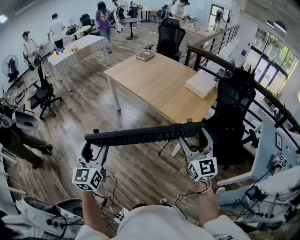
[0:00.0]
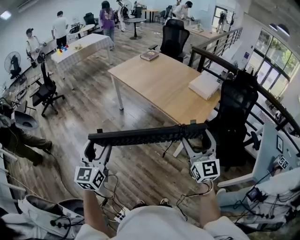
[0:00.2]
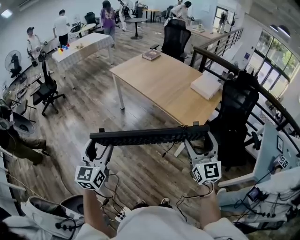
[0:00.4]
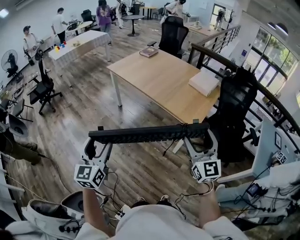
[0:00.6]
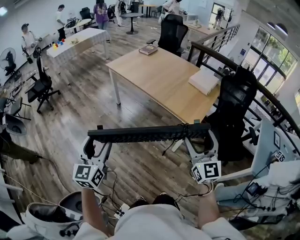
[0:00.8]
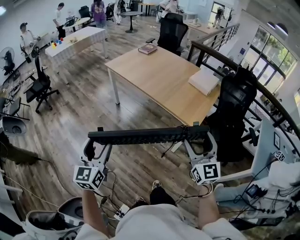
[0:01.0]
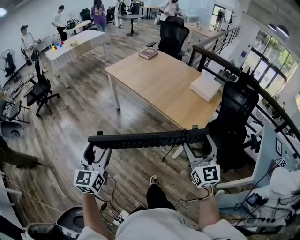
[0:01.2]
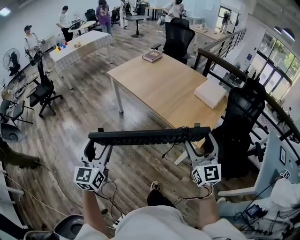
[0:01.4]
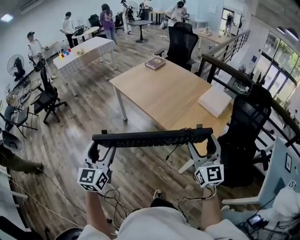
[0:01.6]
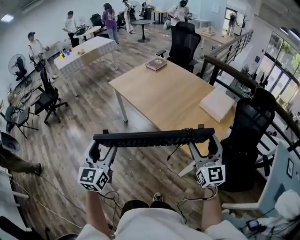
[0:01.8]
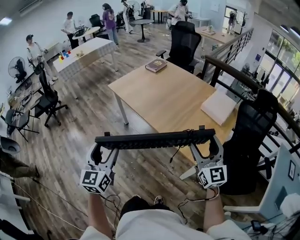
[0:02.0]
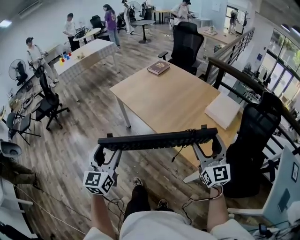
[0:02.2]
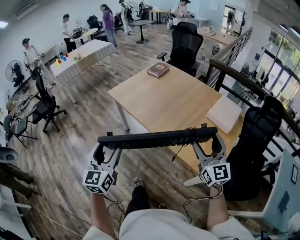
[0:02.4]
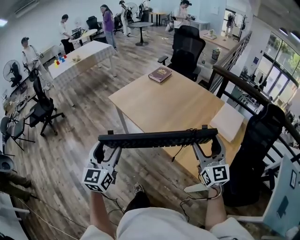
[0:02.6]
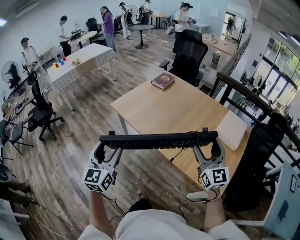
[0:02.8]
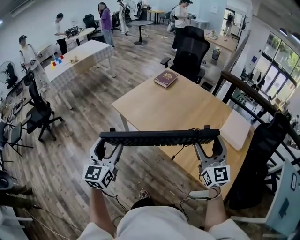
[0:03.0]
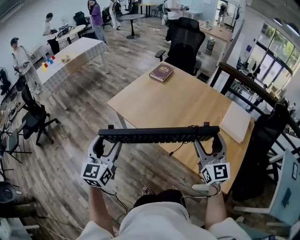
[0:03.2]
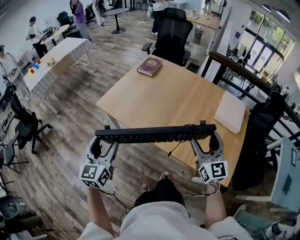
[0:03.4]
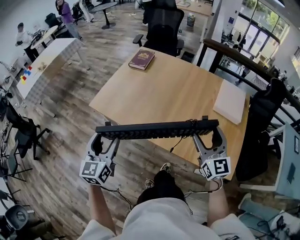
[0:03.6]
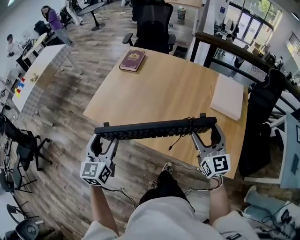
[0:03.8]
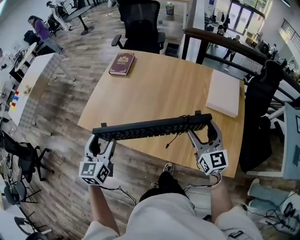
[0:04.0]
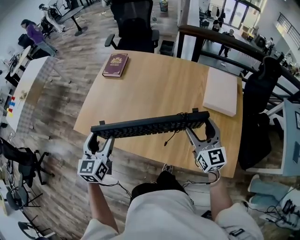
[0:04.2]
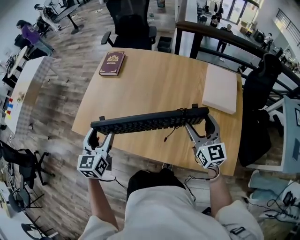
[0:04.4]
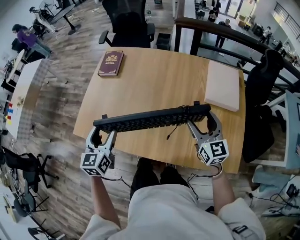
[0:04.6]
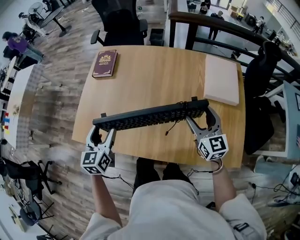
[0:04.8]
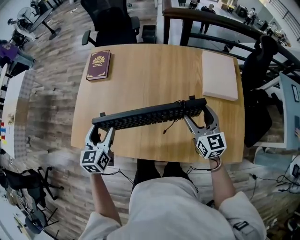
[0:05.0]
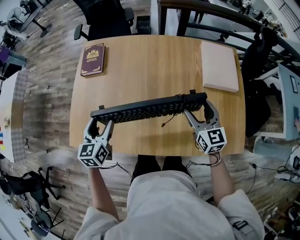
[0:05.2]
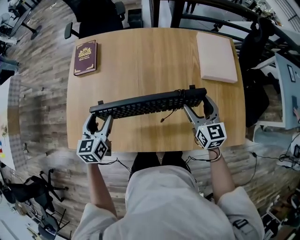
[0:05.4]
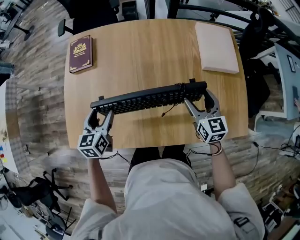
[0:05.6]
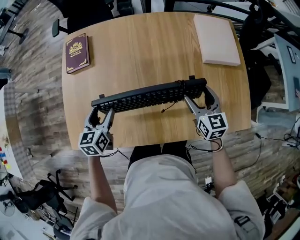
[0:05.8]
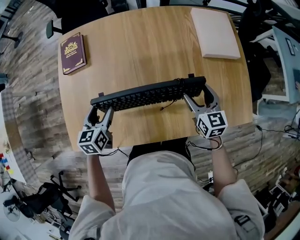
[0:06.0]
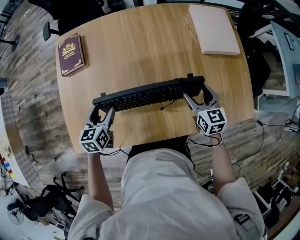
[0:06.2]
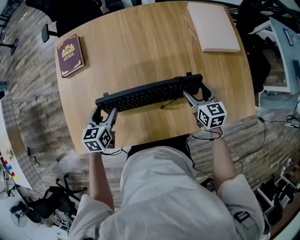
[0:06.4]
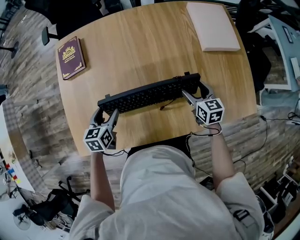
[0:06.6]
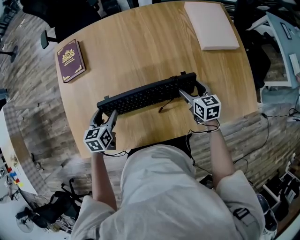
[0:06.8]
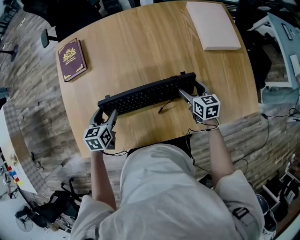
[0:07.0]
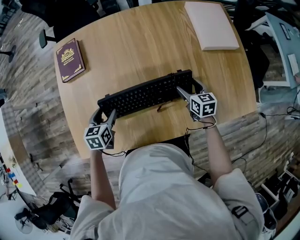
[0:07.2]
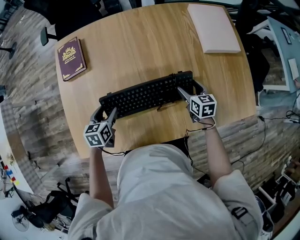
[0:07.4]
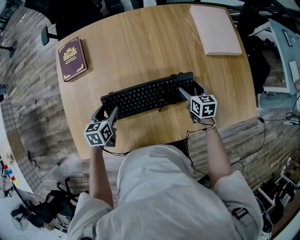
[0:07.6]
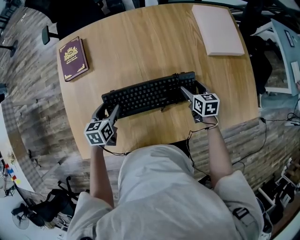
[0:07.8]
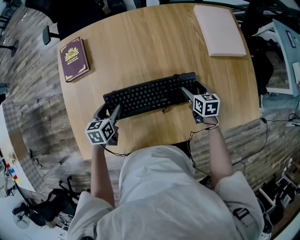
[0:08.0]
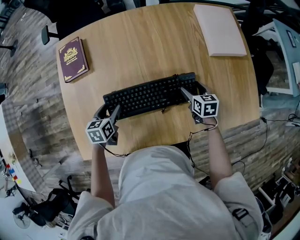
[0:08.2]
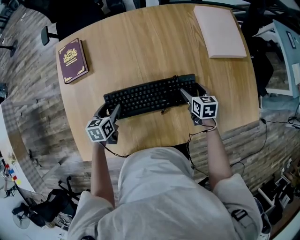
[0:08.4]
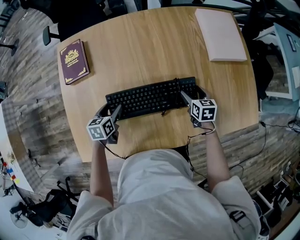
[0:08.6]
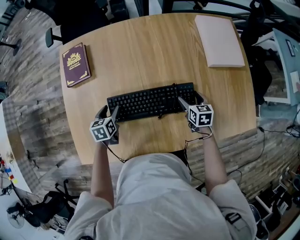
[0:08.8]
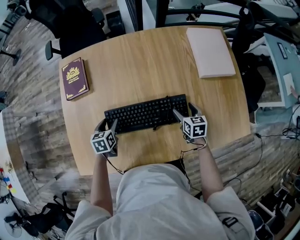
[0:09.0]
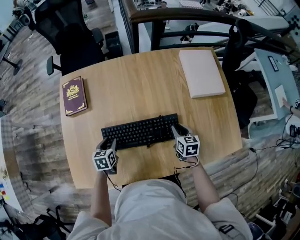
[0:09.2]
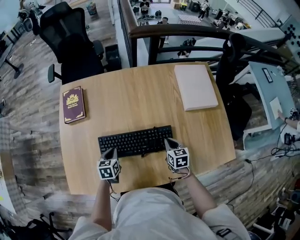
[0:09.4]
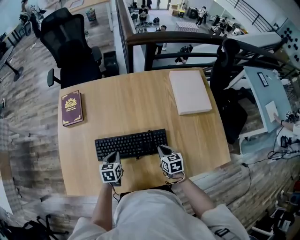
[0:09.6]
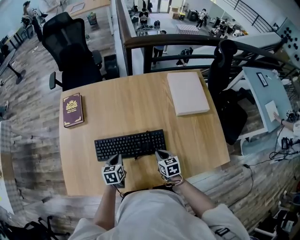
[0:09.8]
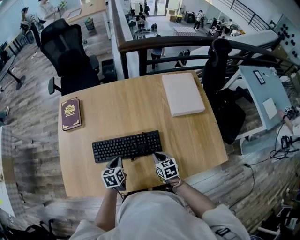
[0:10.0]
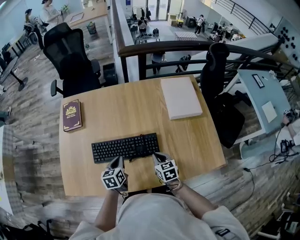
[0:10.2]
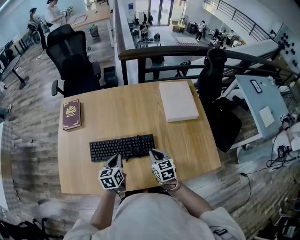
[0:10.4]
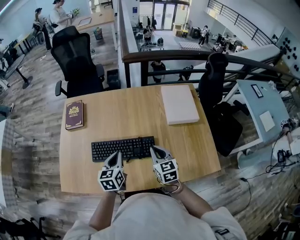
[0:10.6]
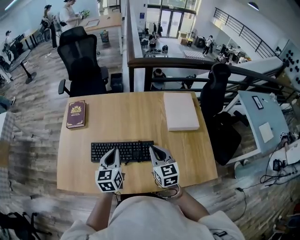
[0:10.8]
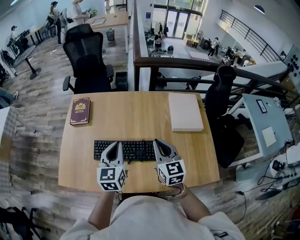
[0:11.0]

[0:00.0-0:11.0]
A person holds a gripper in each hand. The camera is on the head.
0:00.0 to 0:01.6: The two grippers go roughly 15 cm forward.
0:01.6 to 0:03.2: Both grippers travel together forward, approximately 40 cm.
0:03.2 to 0:04.8: The left gripper travels forward by roughly 35 cm, and turns by roughly 30 degrees. The right gripper is displaced forward, downward and to the right by some 25 cm, and changes its angle by about 30 degrees.
0:04.8 to 0:06.2: The left gripper goes some 20 cm downward and forward, and changes its angle by approximately 30 degrees; the right gripper is displaced downward by about 15 cm, and swivels about 30 degrees.
0:06.2 to 0:07.8: The left gripper shifts about 5 cm downward, while the right gripper is displaced downward by some 10 cm, and rotates approximately 20 degrees.
0:07.8 to 0:09.4: The left gripper shifts some 5 cm to the right, and closes its fingers. The right gripper closes up.
0:09.4 to 0:11.0: The right gripper heads upward, covering some 25 cm, and tilts its fingers about 30 degrees upward; the left gripper travels upward and to the right by some 30 cm, and points its fingers some 40 degrees further upward.

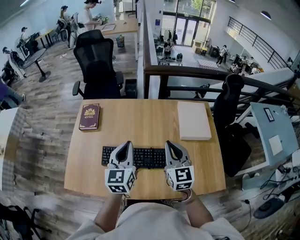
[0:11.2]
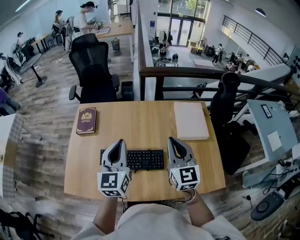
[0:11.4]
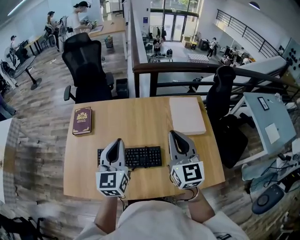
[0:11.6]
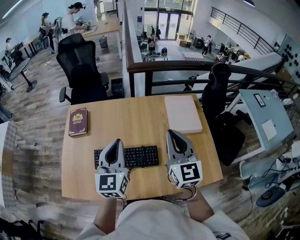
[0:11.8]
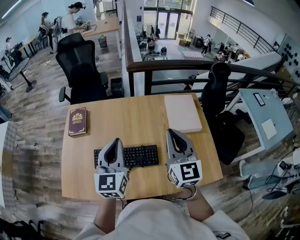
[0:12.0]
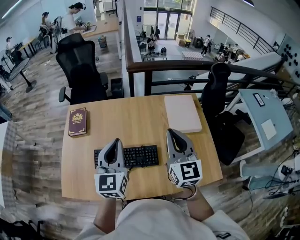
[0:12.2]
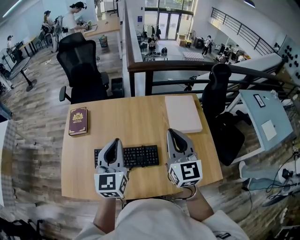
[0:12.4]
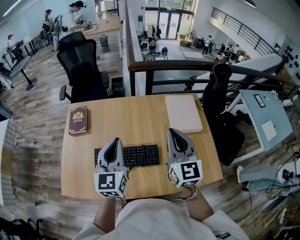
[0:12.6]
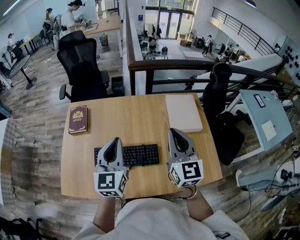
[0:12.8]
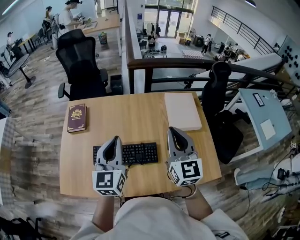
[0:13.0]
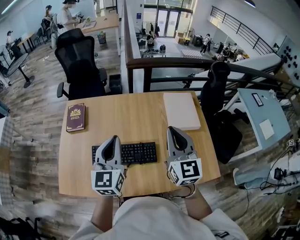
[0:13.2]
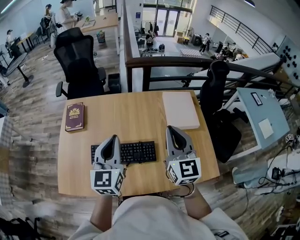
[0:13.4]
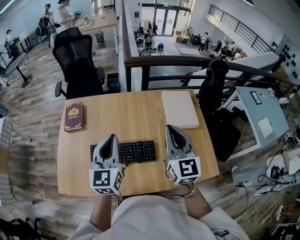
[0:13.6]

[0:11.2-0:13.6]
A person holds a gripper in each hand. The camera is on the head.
0:11.2 to 0:12.4: The right gripper travels upward by some 10 cm.
0:12.4 to 0:13.6: The two grippers keep their place.

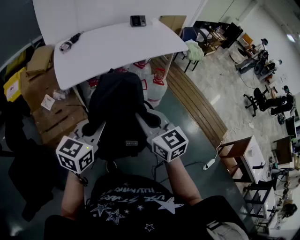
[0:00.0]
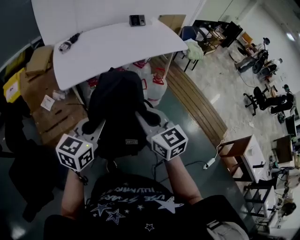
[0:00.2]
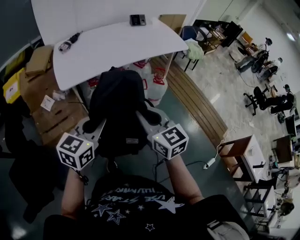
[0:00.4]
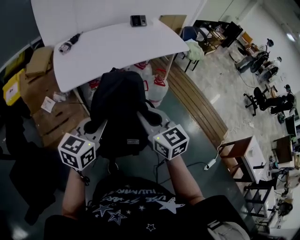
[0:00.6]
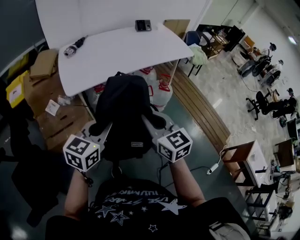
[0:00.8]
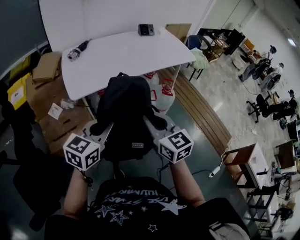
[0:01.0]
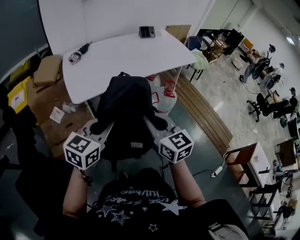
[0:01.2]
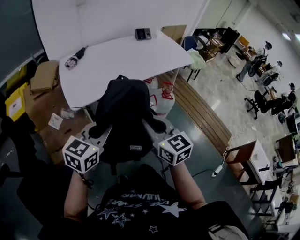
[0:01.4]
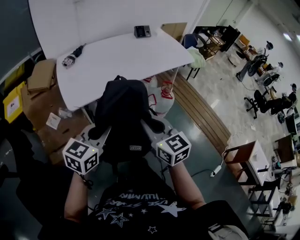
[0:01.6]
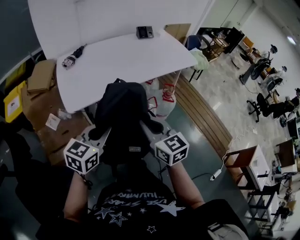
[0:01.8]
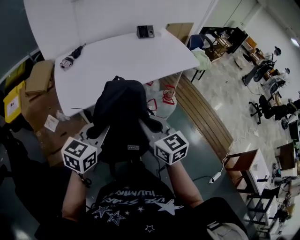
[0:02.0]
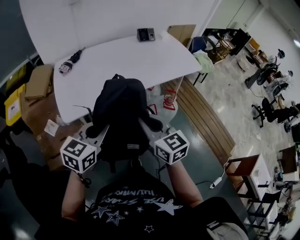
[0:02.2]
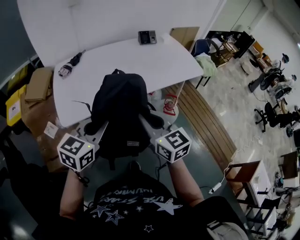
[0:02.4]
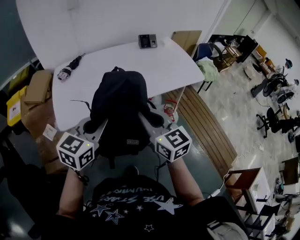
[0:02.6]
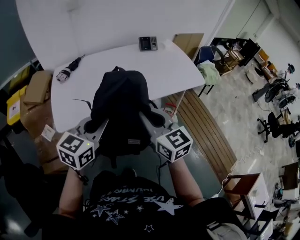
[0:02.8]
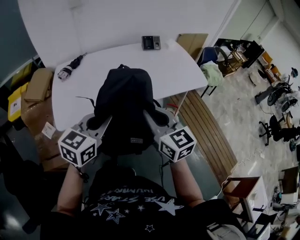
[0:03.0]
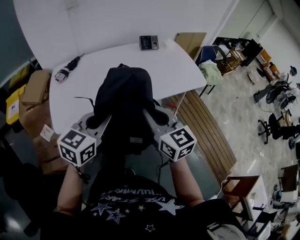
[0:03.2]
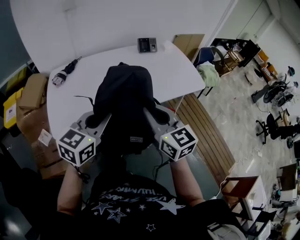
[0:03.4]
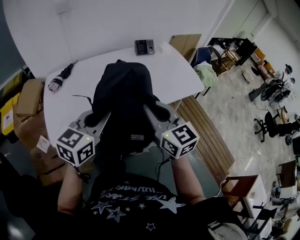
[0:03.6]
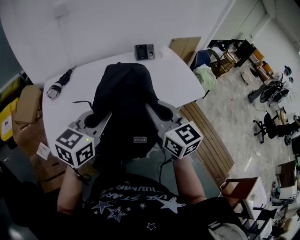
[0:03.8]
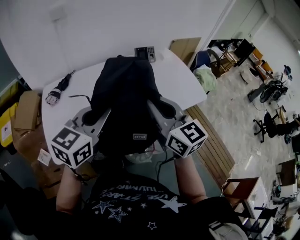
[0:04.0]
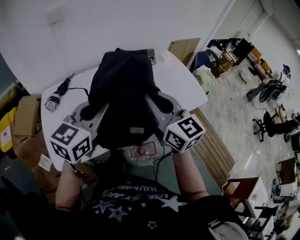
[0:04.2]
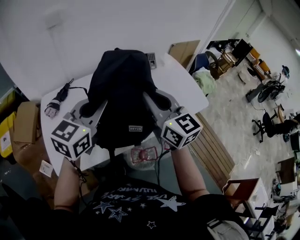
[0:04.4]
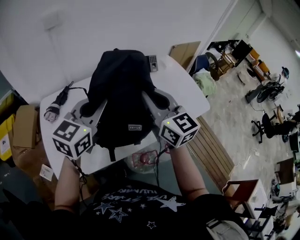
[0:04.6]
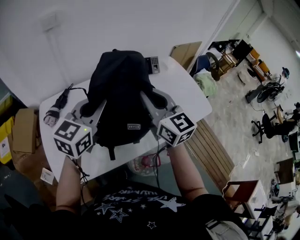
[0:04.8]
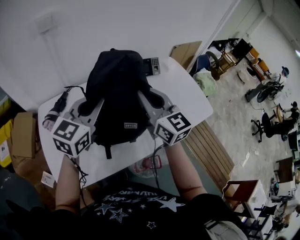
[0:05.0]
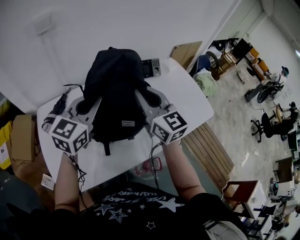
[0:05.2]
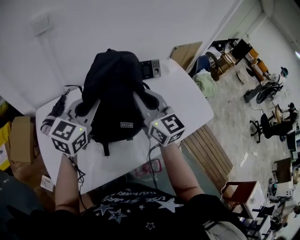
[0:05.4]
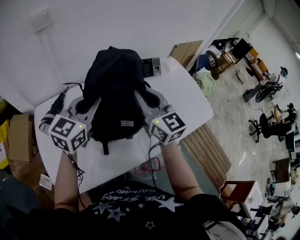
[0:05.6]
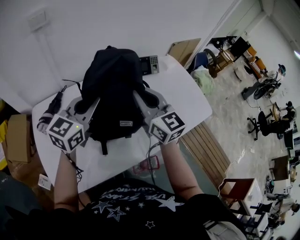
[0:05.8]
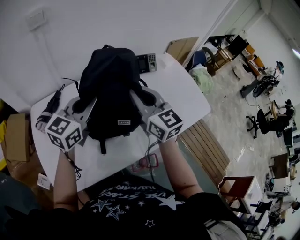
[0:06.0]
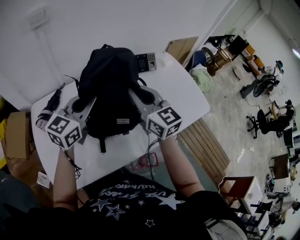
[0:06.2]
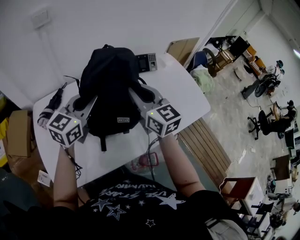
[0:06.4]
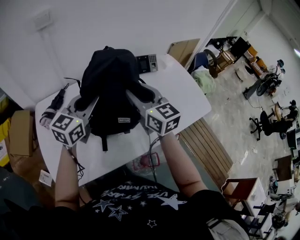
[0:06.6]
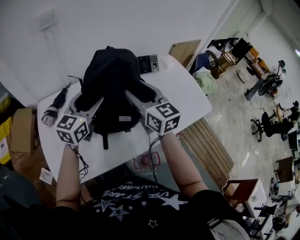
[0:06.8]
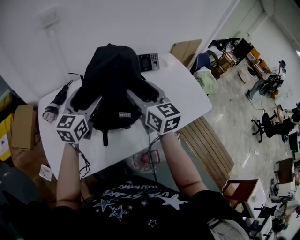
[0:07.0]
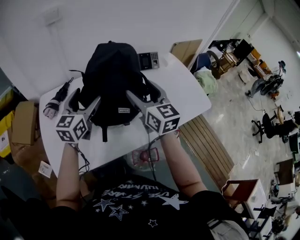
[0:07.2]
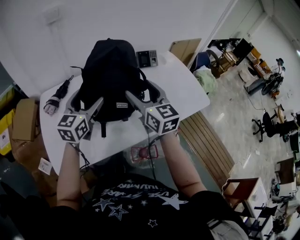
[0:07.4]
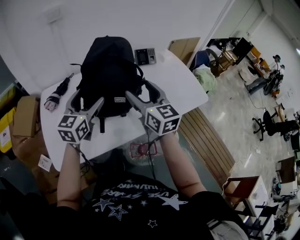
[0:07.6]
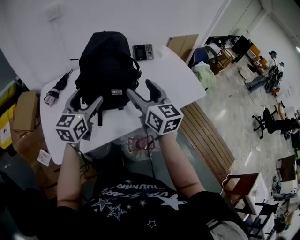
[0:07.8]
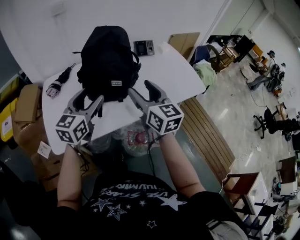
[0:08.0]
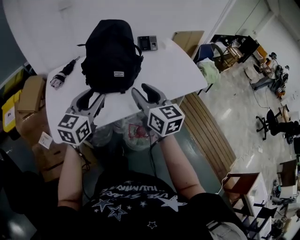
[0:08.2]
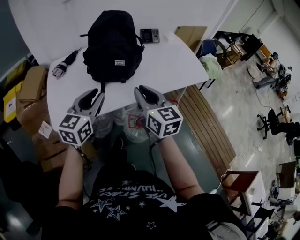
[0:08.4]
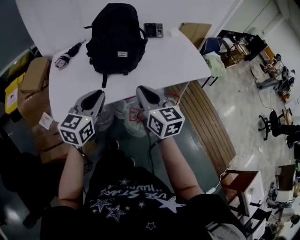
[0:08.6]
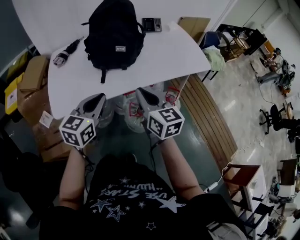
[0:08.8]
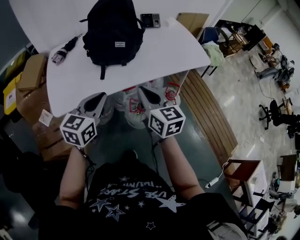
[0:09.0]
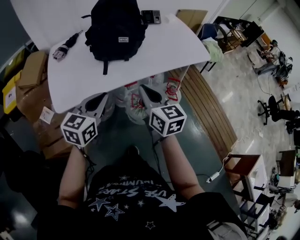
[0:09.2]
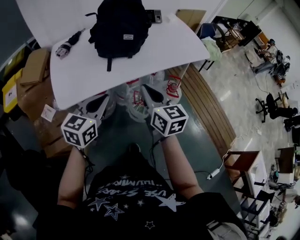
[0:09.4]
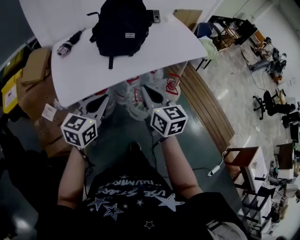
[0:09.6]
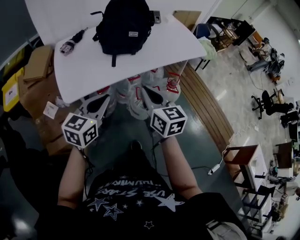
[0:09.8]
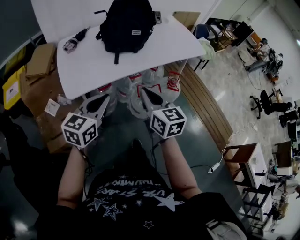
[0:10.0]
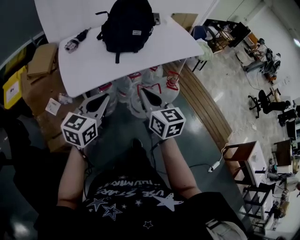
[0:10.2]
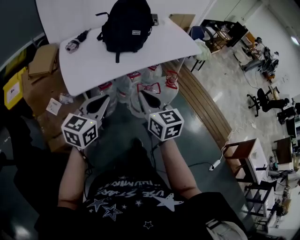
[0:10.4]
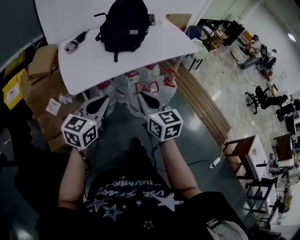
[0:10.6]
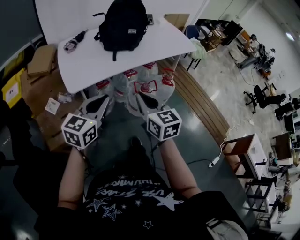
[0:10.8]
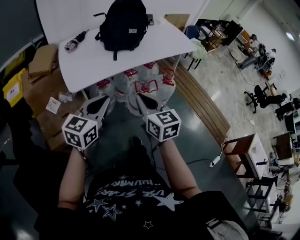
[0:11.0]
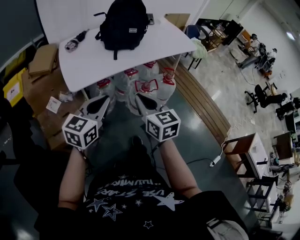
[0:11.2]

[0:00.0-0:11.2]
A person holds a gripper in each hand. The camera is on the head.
0:00.0 to 0:01.6: The two grippers go some 15 cm forward and to the left.
0:01.6 to 0:03.2: Both grippers travel together forward and to the right, some 30 cm.
0:03.2 to 0:04.8: The grippers both shift forward by about 30 cm.
0:04.8 to 0:06.4: The left gripper moves forward and downward, some 10 cm. The right gripper goes about 5 cm forward.
0:06.4 to 0:08.0: The grippers both shift backward by roughly 20 cm. The right gripper opens up. Meanwhile the left gripper opens up.
0:08.0 to 0:09.6: Both grippers travel together backward, approximately 25 cm. The left gripper closes, while the right gripper closes up.
0:09.6 to 0:11.2: The two grippers go some 15 cm backward.
